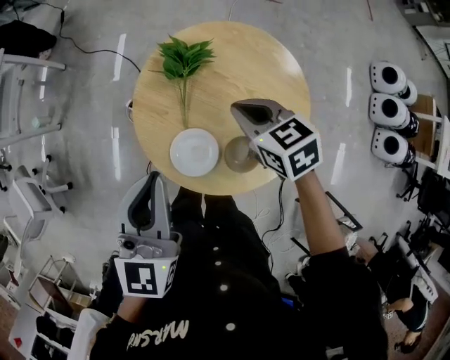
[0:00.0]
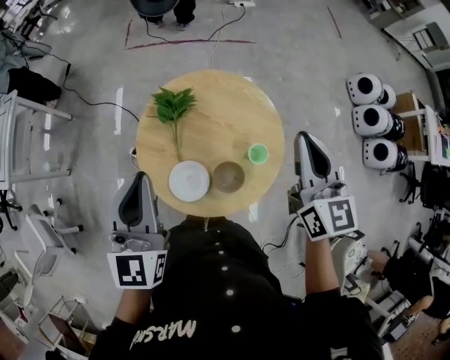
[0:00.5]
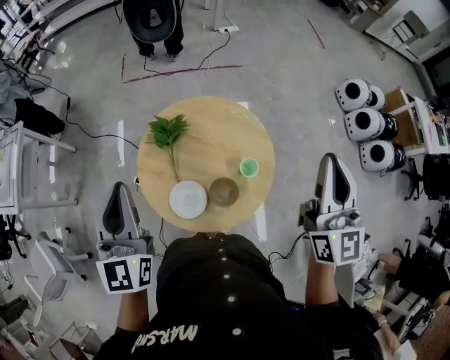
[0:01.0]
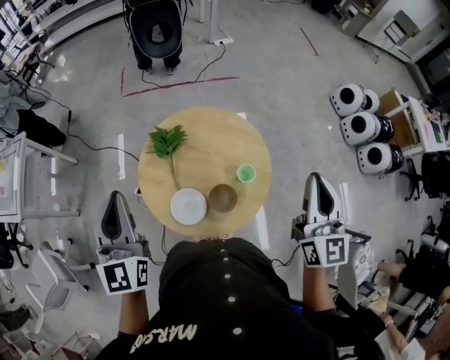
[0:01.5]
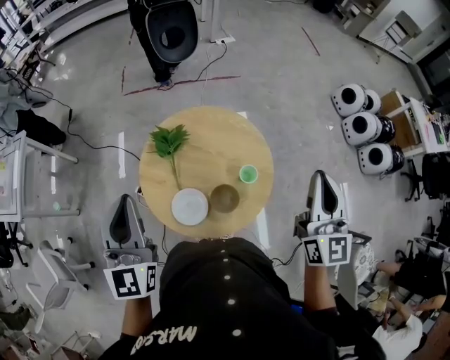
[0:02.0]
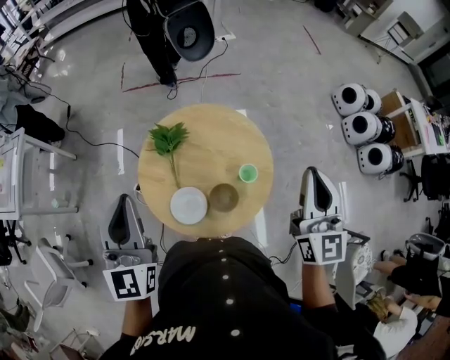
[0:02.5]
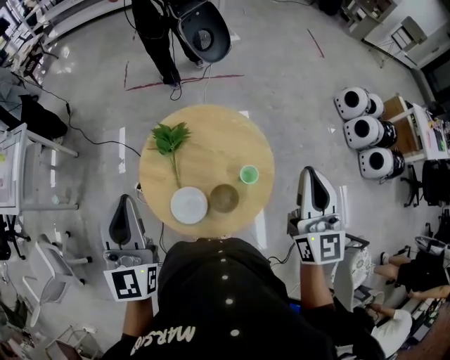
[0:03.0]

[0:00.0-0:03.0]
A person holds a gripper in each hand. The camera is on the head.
0:00.0 to 0:01.5: The right gripper ends up about 40 cm from where it was, and tips its fingers upward by about 50 degrees. Meanwhile the left gripper travels upward by roughly 15 cm.
0:01.5 to 0:03.0: The grippers move only a little.

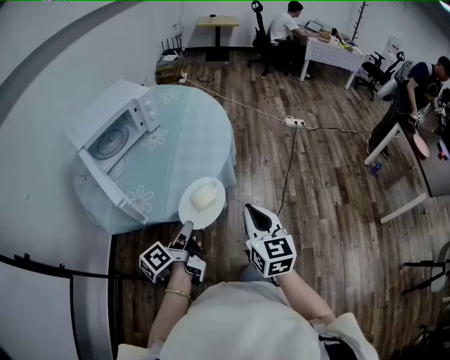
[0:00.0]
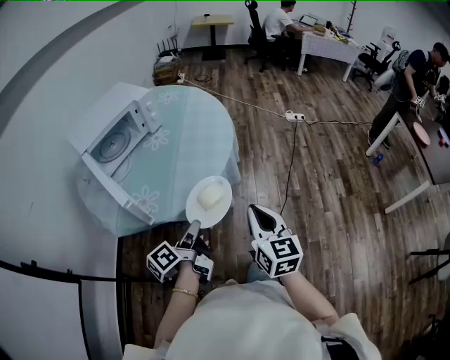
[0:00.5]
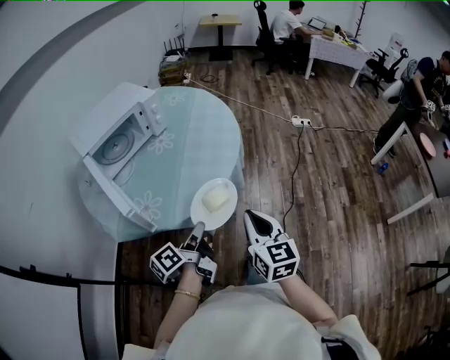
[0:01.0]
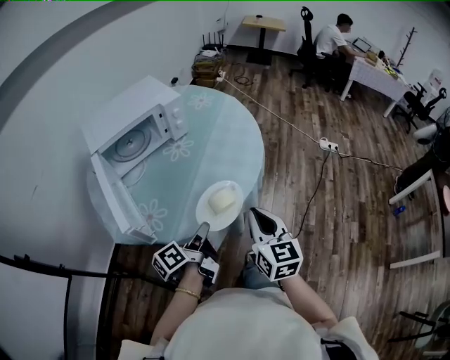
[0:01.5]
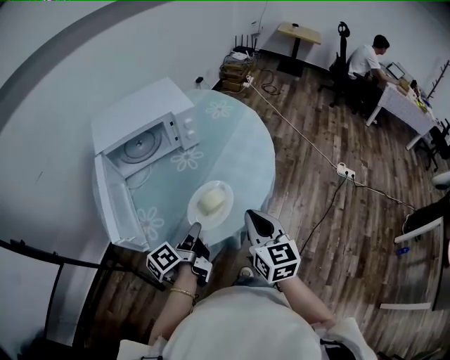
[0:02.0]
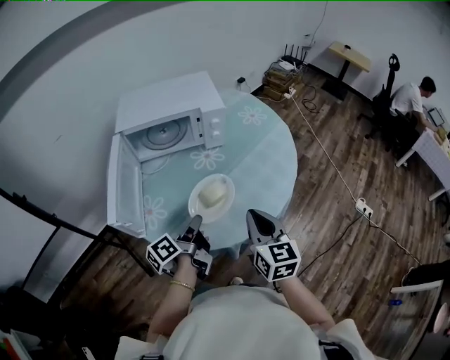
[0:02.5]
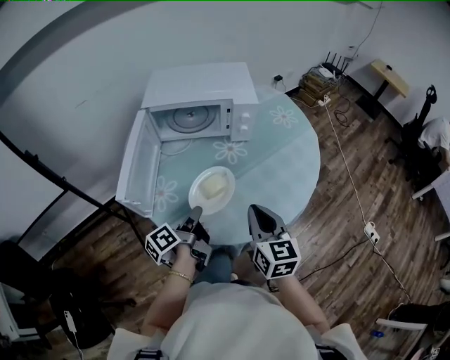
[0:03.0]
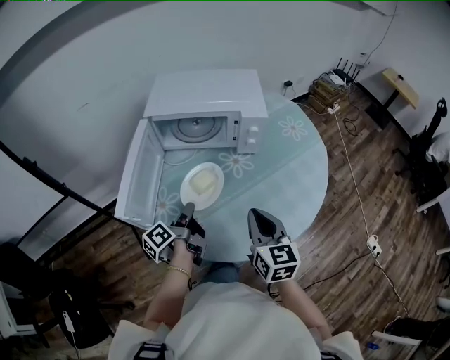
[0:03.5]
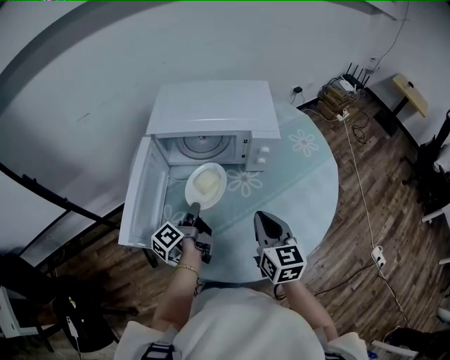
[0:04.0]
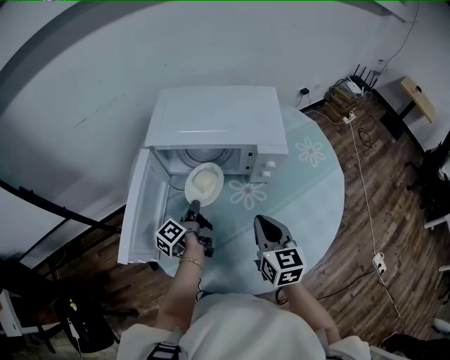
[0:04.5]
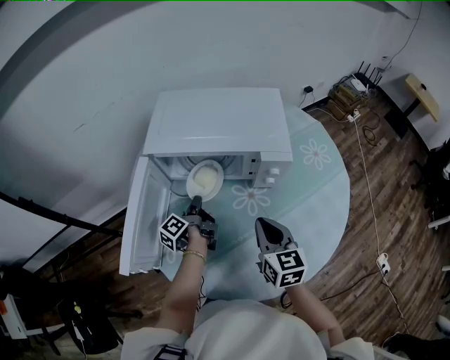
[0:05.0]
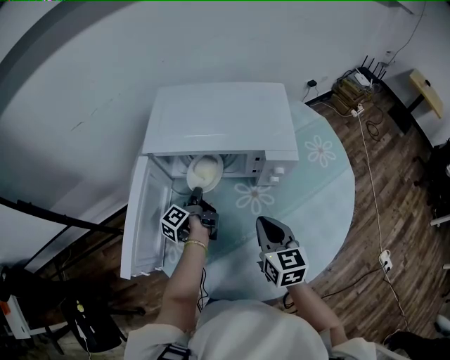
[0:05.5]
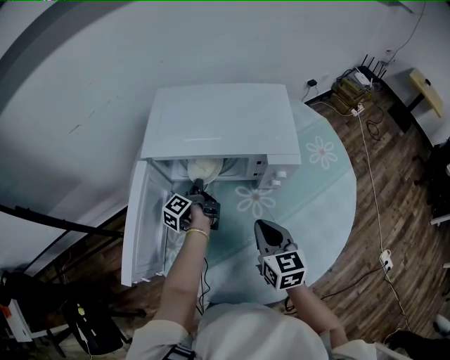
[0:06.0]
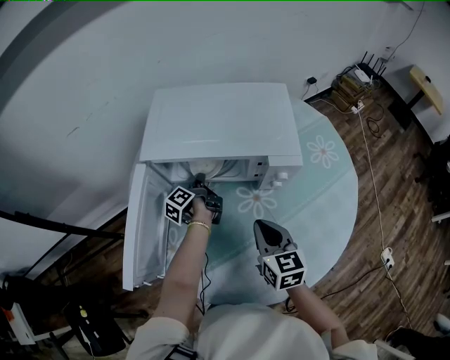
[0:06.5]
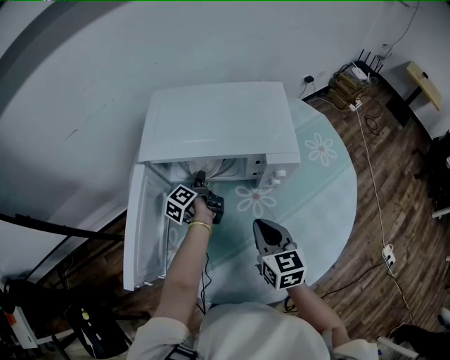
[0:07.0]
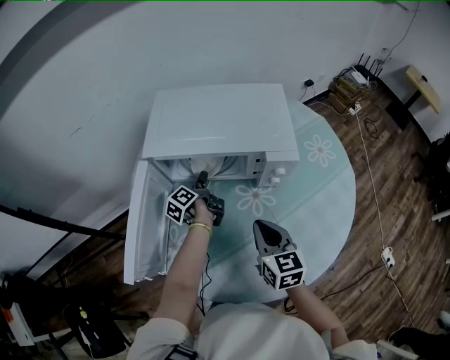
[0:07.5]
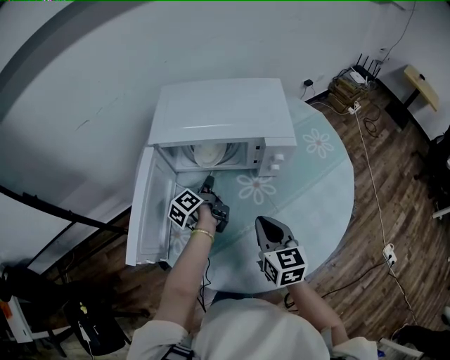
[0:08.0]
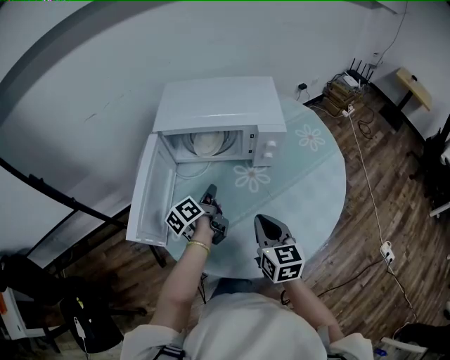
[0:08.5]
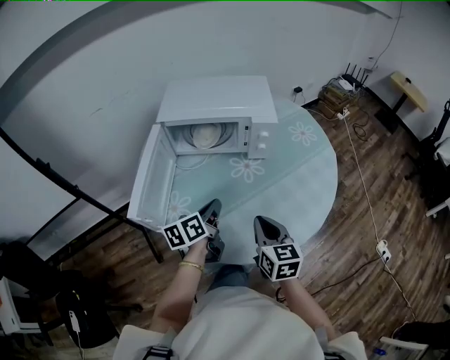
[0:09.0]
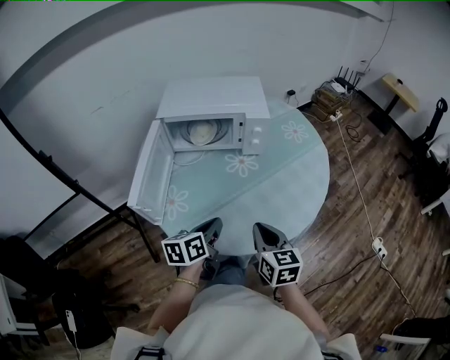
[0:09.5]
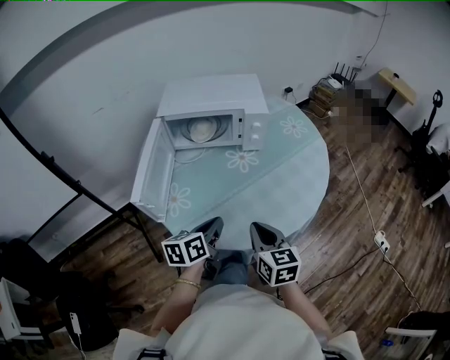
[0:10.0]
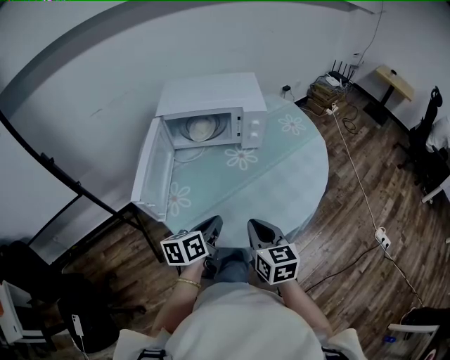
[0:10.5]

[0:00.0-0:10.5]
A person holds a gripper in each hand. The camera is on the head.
0:00.0 to 0:02.0: The right gripper ends up approximately 25 cm from where it was, and changes its angle by about 30 degrees.
0:02.0 to 0:04.0: The right gripper ends up roughly 25 cm from where it was, and swivels some 30 degrees.
0:04.0 to 0:06.5: The right gripper moves about 10 cm.
0:06.5 to 0:08.5: The right gripper shifts by roughly 15 cm.
0:08.5 to 0:10.5: The right gripper shifts by some 15 cm.

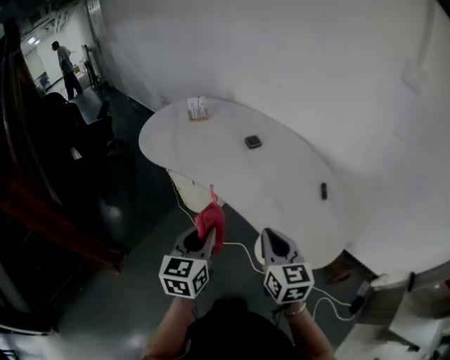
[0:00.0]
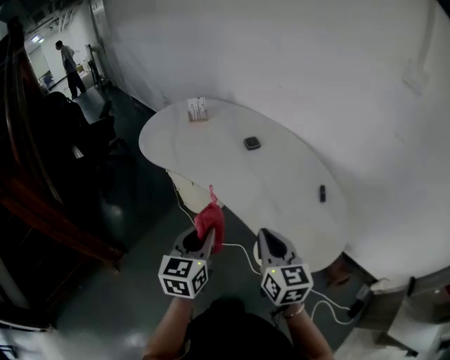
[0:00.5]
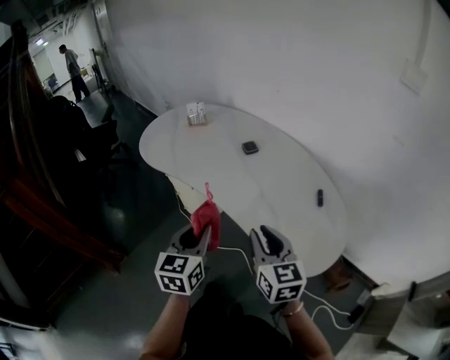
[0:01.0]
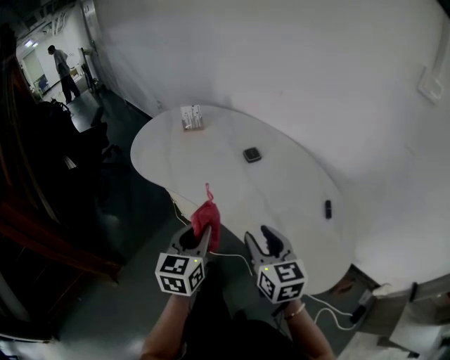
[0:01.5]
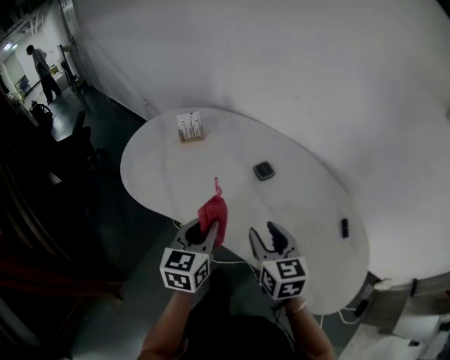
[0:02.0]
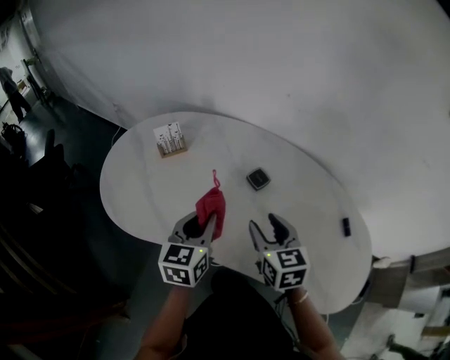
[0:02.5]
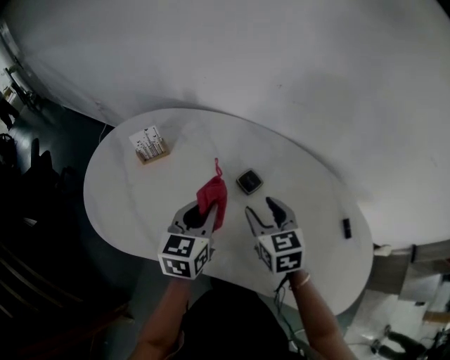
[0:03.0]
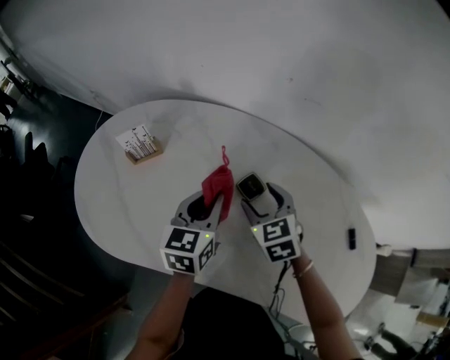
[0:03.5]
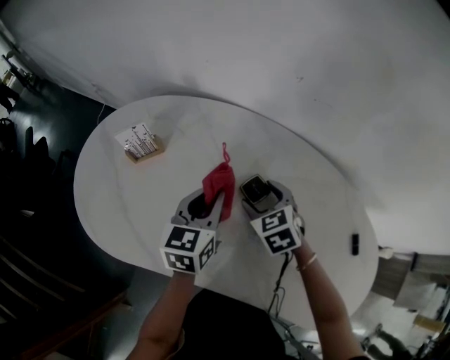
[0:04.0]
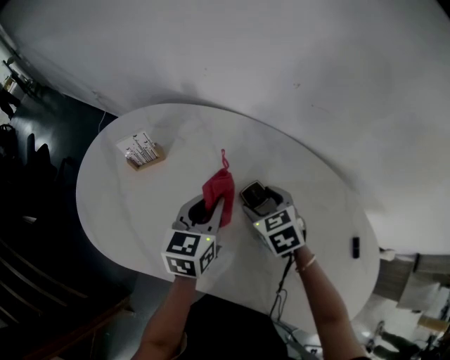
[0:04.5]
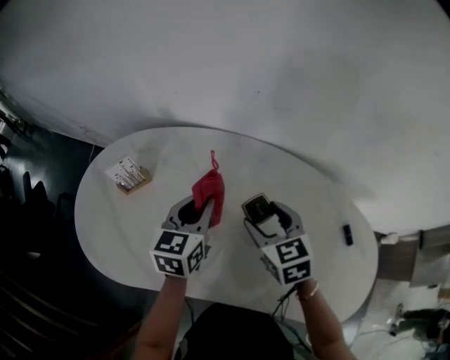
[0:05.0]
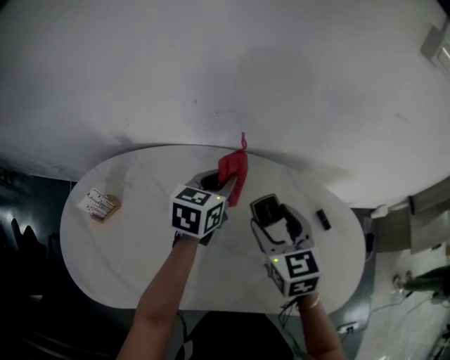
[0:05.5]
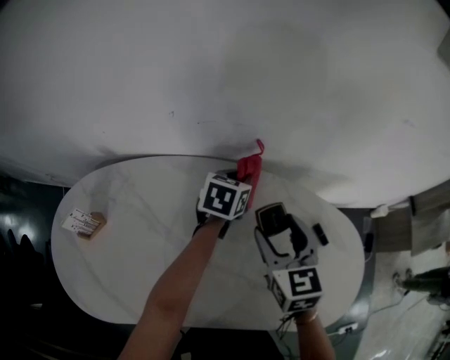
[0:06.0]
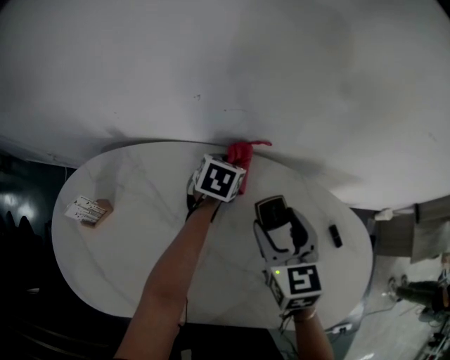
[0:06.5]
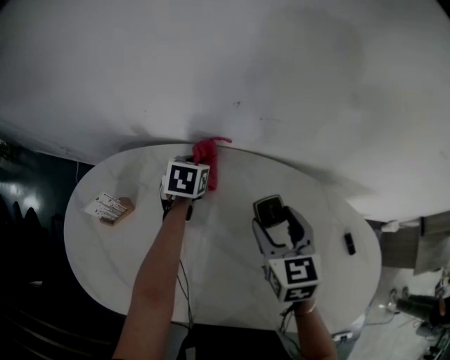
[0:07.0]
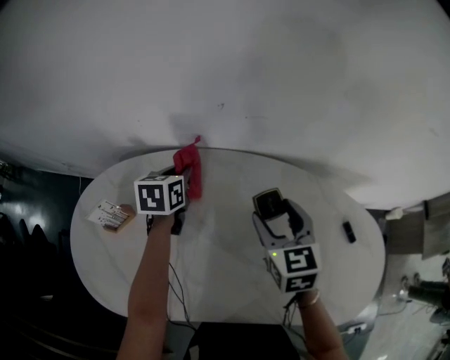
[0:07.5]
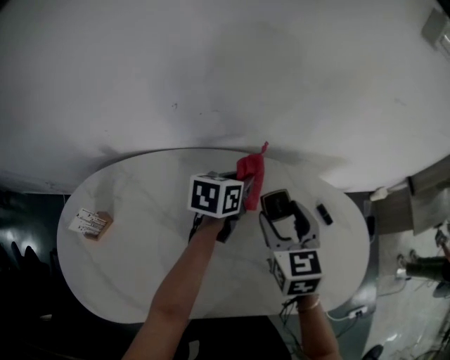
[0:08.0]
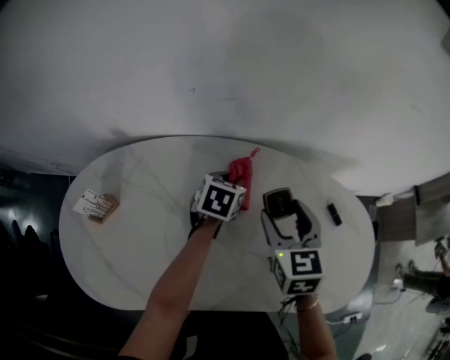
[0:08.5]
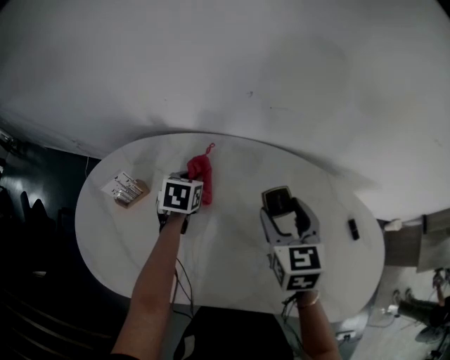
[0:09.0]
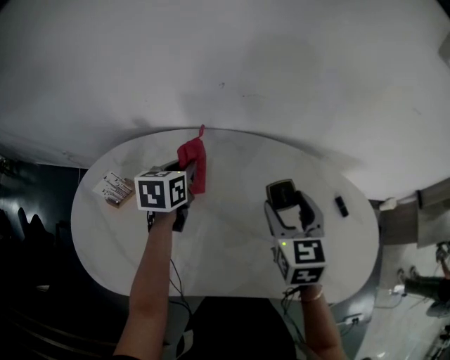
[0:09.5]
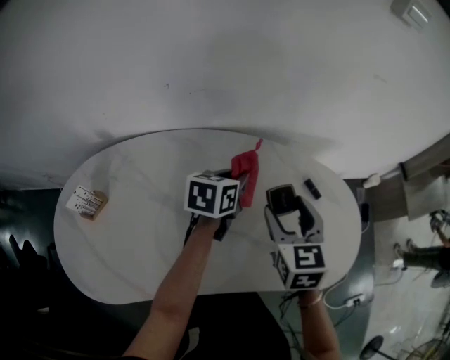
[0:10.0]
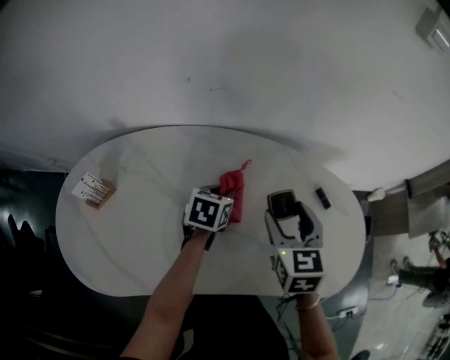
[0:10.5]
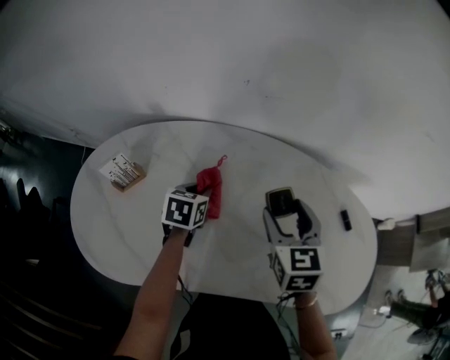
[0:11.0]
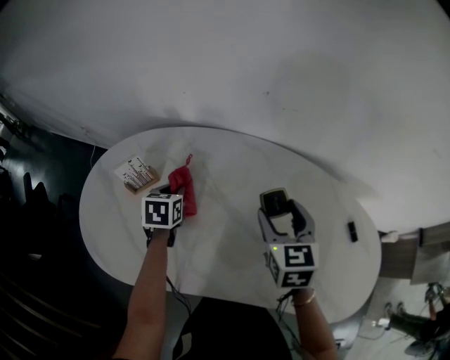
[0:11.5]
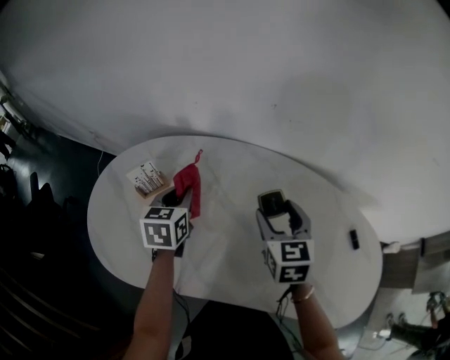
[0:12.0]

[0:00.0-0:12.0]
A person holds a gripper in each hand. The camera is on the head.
0:00.0 to 0:02.0: Both grippers move forward, roughly 25 cm. The right gripper opens up.
0:02.0 to 0:04.0: The left gripper travels forward by roughly 25 cm. Meanwhile the right gripper shifts about 25 cm forward and downward, turns by roughly 30 degrees, and opens.
0:04.0 to 0:06.0: The right gripper changes place by some 25 cm, and rotates some 50 degrees. Meanwhile the left gripper moves approximately 30 cm, and changes its angle by some 40 degrees.
0:08.0 to 0:10.0: The left gripper goes downward and returns, about 5 cm each way.
0:10.0 to 0:12.0: The right gripper changes place by some 20 cm, and swivels about 20 degrees. Meanwhile the left gripper moves about 5 cm downward and comes back, and rotates approximately 40 degrees.

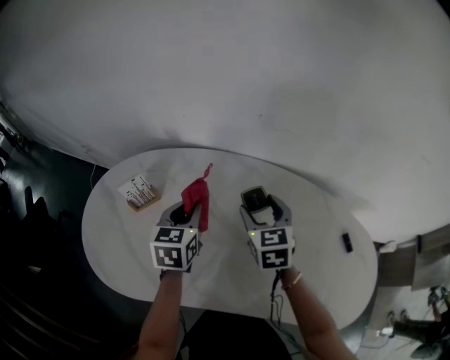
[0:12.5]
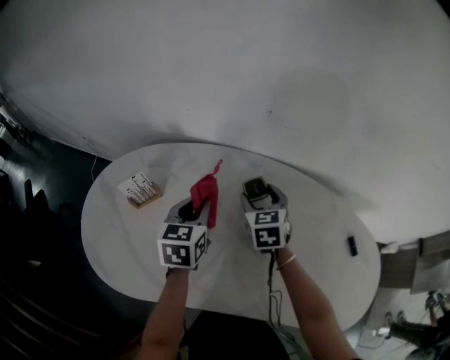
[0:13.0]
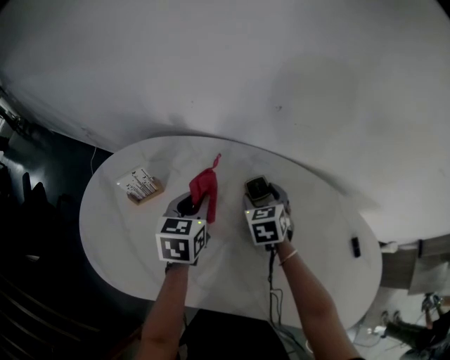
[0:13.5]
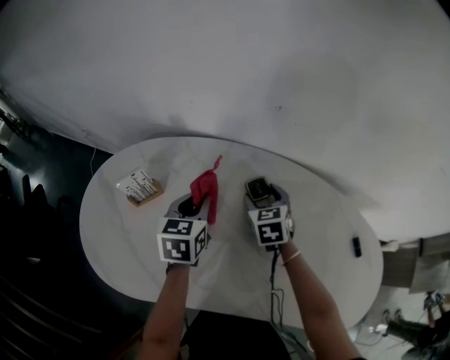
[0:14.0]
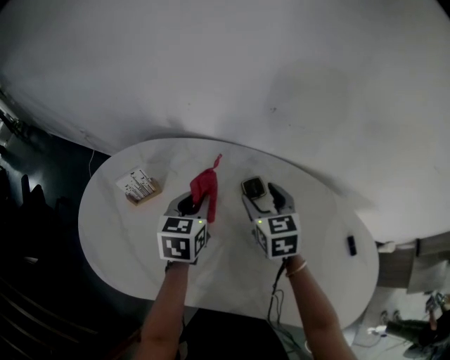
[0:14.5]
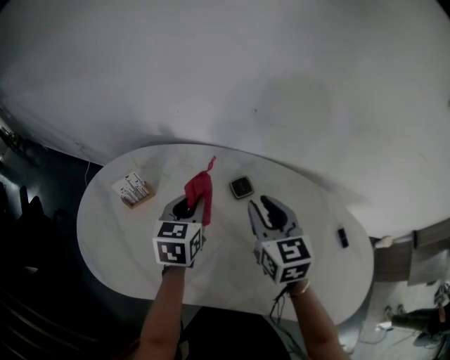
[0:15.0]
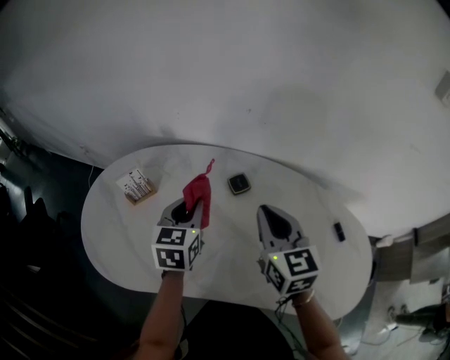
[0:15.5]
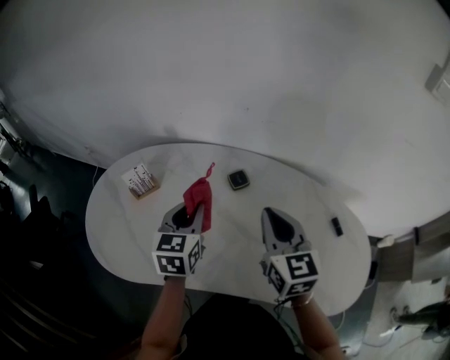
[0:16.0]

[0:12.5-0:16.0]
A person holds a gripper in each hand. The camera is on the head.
0:12.5 to 0:14.5: The right gripper travels downward and back again, some 10 cm each way.
0:14.5 to 0:16.0: The right gripper shifts approximately 20 cm backward and upward, and closes its fingers, while the left gripper goes some 10 cm backward and upward.
